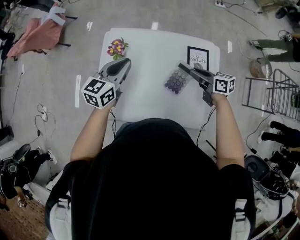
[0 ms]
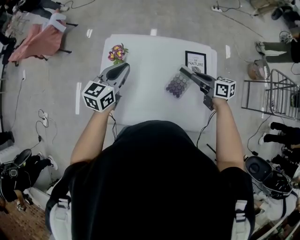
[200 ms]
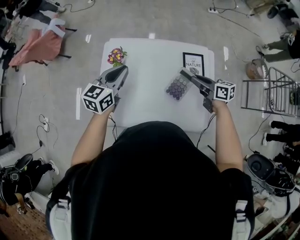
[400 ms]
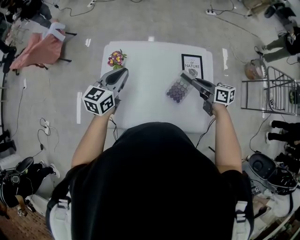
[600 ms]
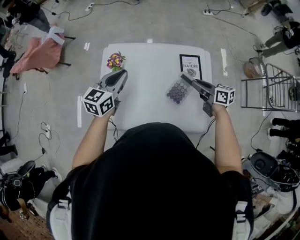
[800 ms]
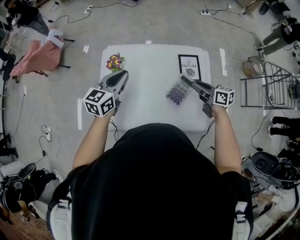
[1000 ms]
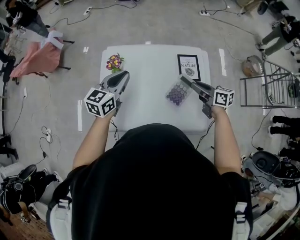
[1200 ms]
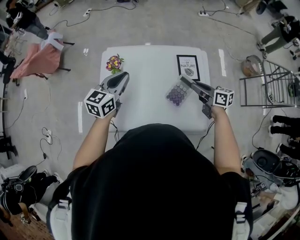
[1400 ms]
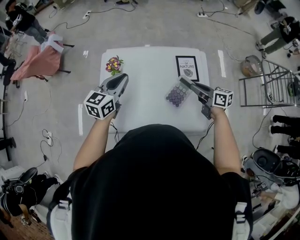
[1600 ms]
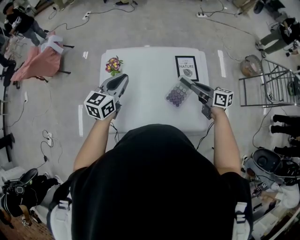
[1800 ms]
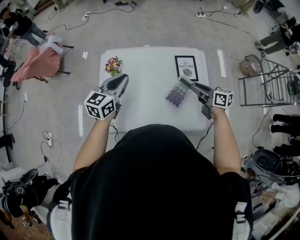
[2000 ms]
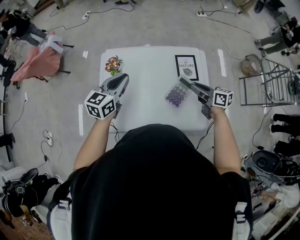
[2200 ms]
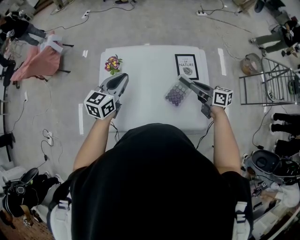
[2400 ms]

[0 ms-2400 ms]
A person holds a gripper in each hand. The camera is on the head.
0 ms to 1200 ms: The left gripper moves some 5 cm. Meanwhile the right gripper is displaced backward by about 10 cm.
1200 ms to 2400 ms: There are only small adjustments of the grippers.

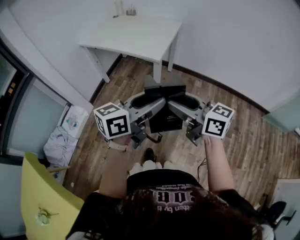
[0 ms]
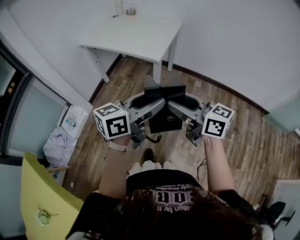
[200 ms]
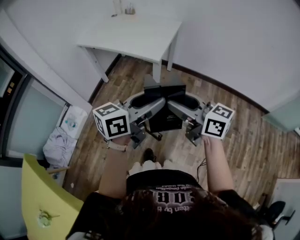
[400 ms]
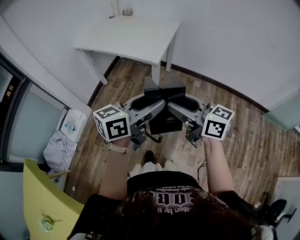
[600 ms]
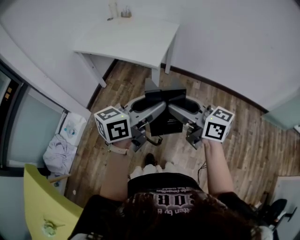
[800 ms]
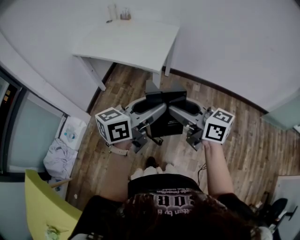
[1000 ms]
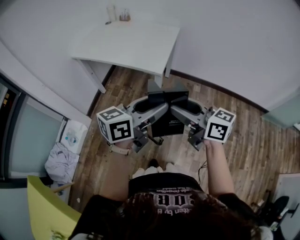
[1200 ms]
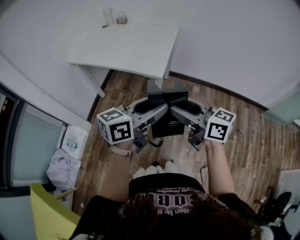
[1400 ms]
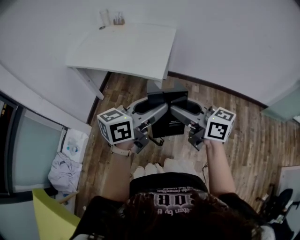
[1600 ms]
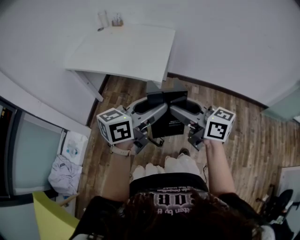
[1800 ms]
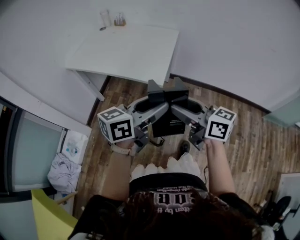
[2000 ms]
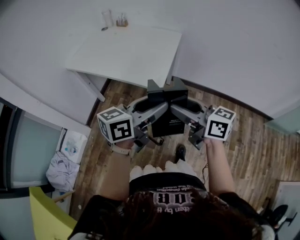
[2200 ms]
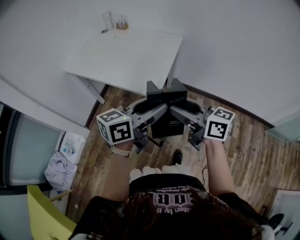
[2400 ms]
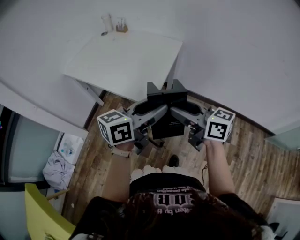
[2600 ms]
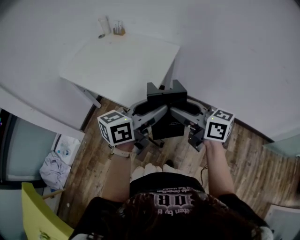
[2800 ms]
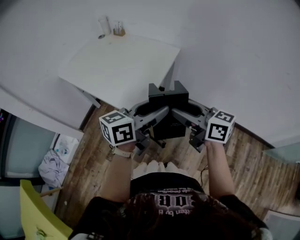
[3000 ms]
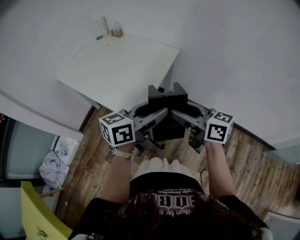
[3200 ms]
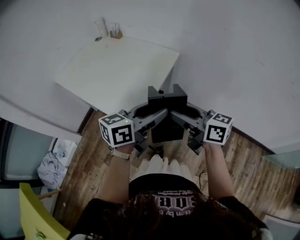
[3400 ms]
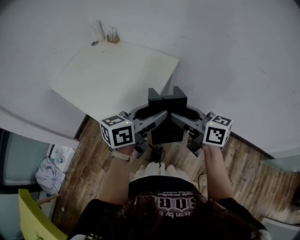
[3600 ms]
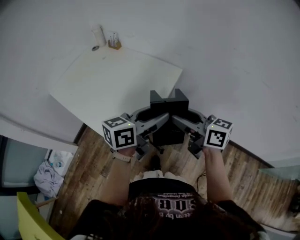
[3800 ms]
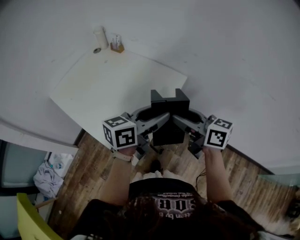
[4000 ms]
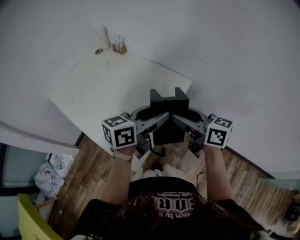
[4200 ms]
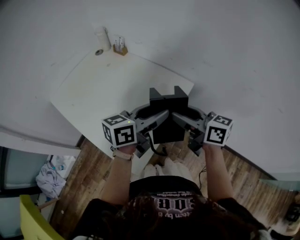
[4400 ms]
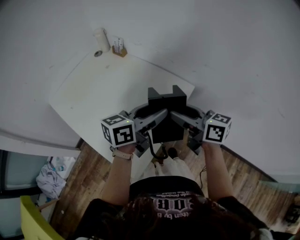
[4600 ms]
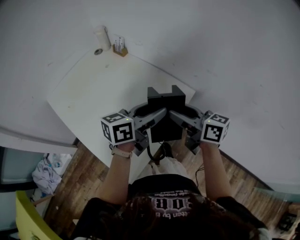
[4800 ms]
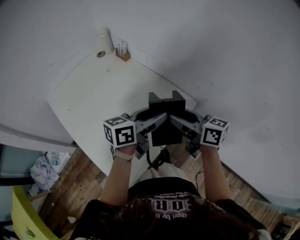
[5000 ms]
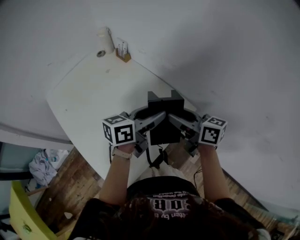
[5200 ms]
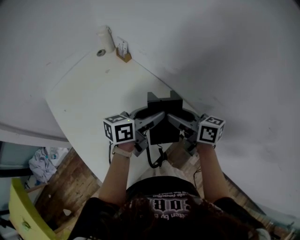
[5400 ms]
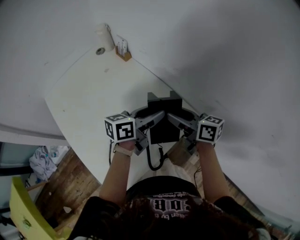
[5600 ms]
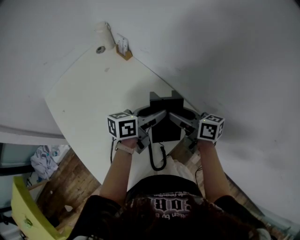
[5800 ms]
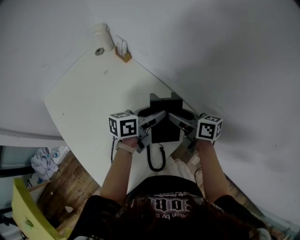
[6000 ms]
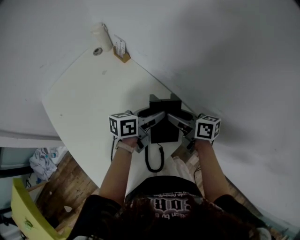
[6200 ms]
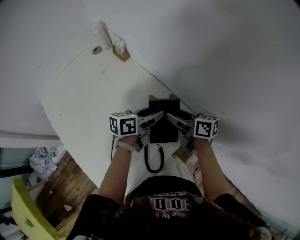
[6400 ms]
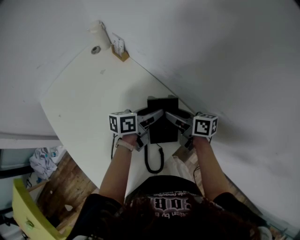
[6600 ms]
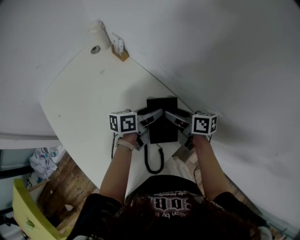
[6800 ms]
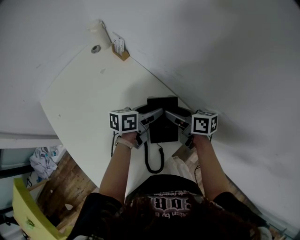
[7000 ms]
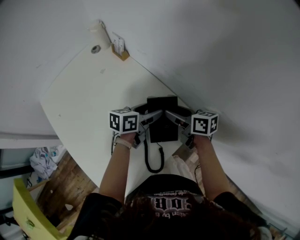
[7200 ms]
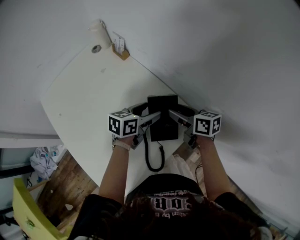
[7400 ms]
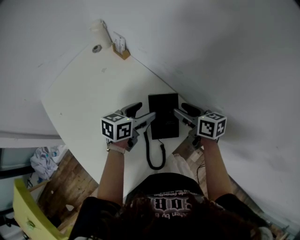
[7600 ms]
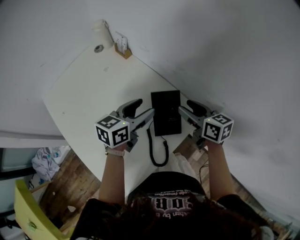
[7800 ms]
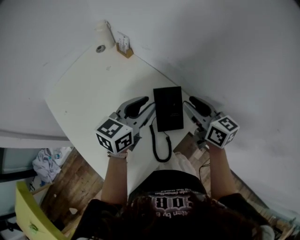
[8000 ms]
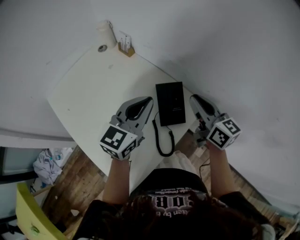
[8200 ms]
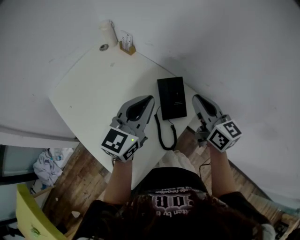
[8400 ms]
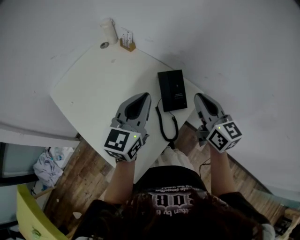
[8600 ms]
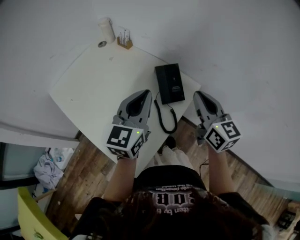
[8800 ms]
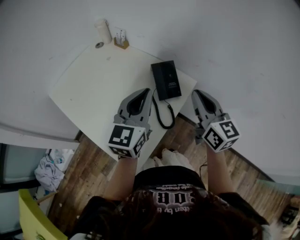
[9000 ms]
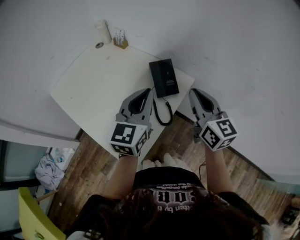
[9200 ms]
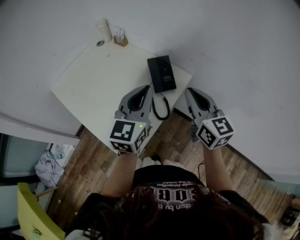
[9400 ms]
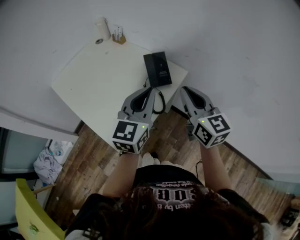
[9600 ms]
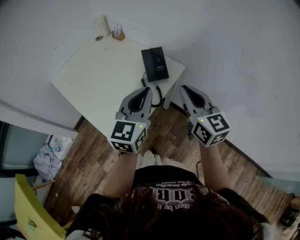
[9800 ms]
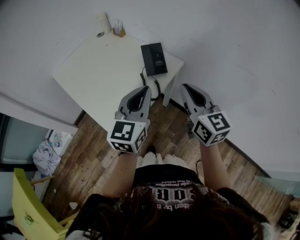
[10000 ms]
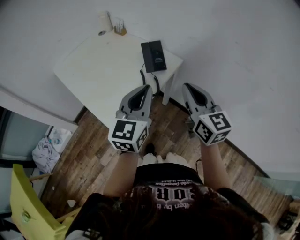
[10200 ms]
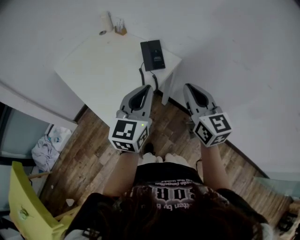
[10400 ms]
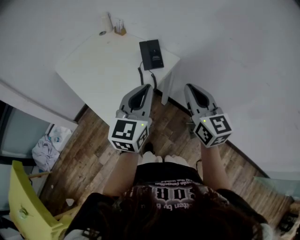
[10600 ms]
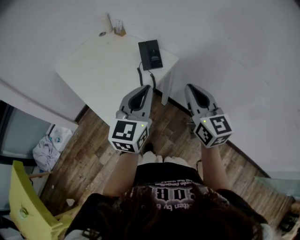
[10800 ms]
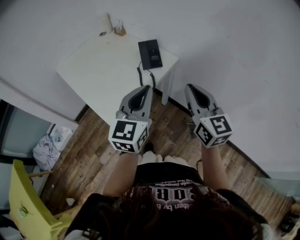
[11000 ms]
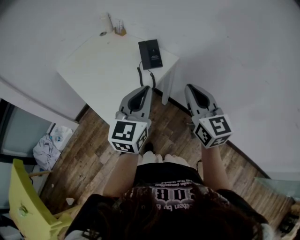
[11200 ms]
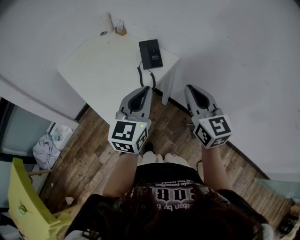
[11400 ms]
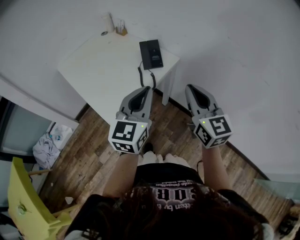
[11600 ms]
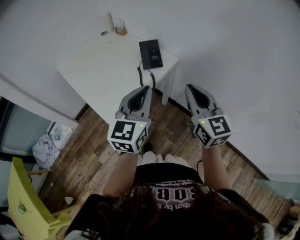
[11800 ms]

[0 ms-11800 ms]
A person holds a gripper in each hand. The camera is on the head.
0 ms to 1400 ms: The two grippers go some 10 cm forward.
1400 ms to 3000 ms: The grippers both shift forward and to the right by some 30 cm.
3000 ms to 4400 ms: Both grippers move forward, roughly 25 cm.
4400 ms to 6000 ms: The two grippers go roughly 30 cm forward and downward. The right gripper turns by roughly 20 degrees; the left gripper changes its angle by some 20 degrees.
6000 ms to 7400 ms: The left gripper heads downward, covering some 5 cm, and opens up; the right gripper shifts by some 5 cm.
7400 ms to 8800 ms: The grippers both shift upward and backward by about 25 cm. The left gripper turns by roughly 40 degrees, and closes. Meanwhile the right gripper swivels roughly 50 degrees, and closes its fingers.
8800 ms to 10400 ms: The left gripper moves backward and to the right, approximately 20 cm. Meanwhile the right gripper shifts roughly 20 cm backward.
10400 ms to 11800 ms: The grippers move only a little.

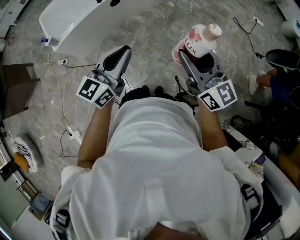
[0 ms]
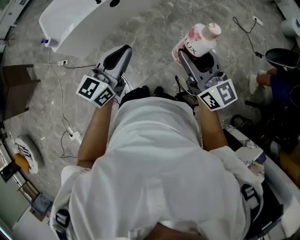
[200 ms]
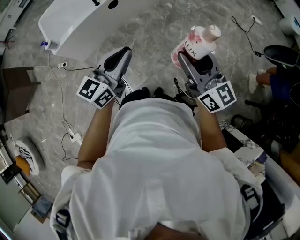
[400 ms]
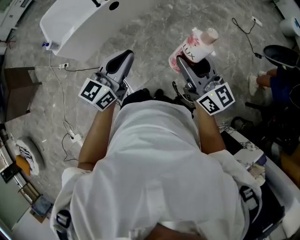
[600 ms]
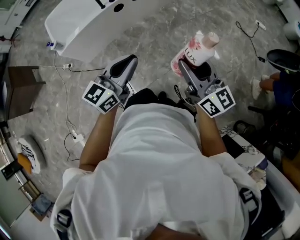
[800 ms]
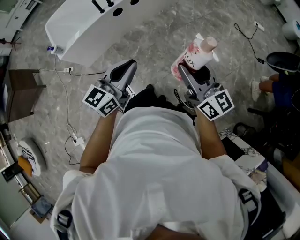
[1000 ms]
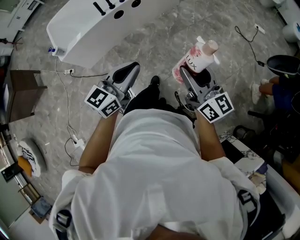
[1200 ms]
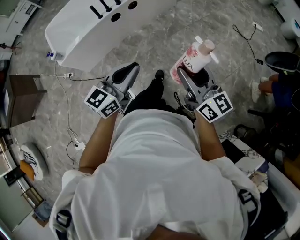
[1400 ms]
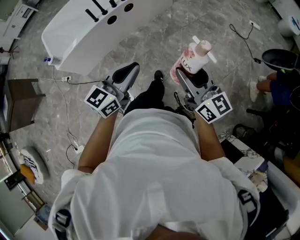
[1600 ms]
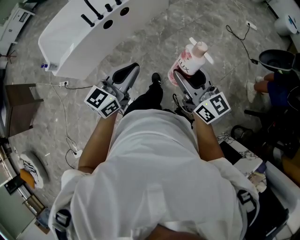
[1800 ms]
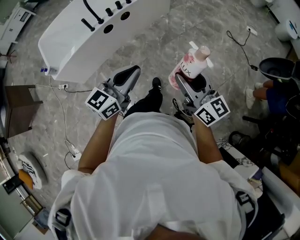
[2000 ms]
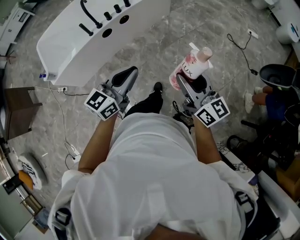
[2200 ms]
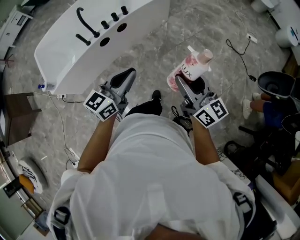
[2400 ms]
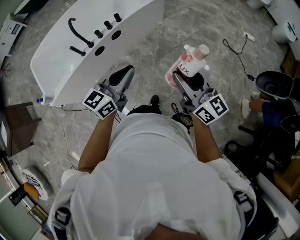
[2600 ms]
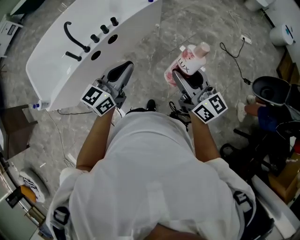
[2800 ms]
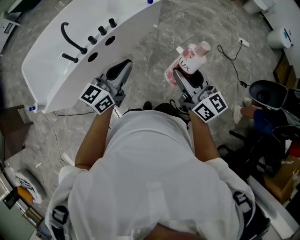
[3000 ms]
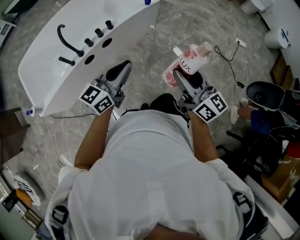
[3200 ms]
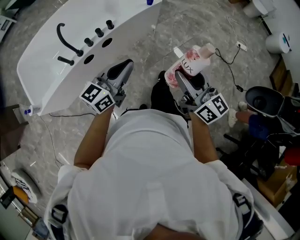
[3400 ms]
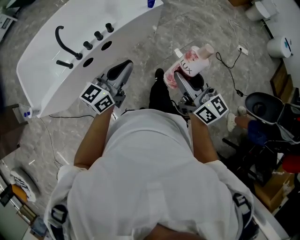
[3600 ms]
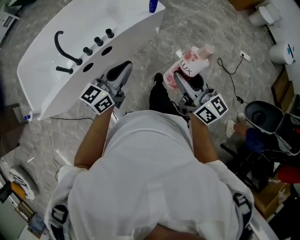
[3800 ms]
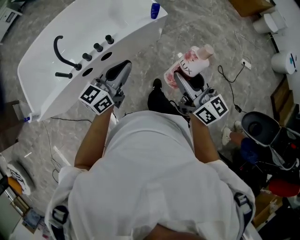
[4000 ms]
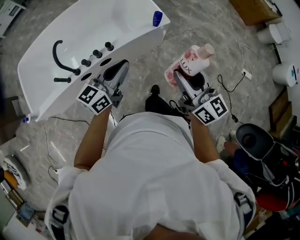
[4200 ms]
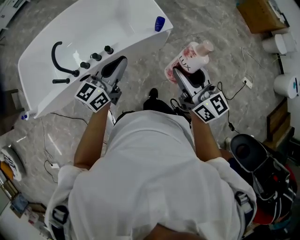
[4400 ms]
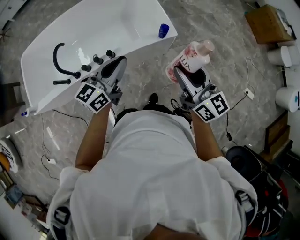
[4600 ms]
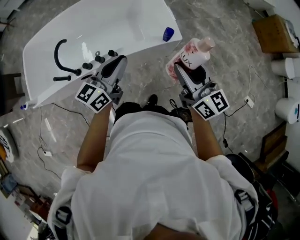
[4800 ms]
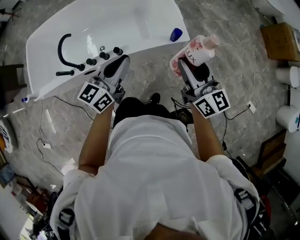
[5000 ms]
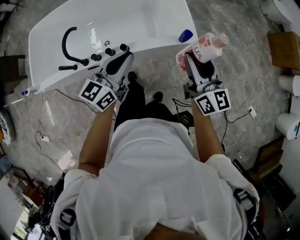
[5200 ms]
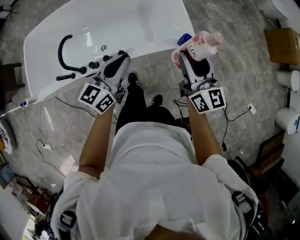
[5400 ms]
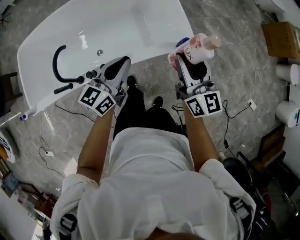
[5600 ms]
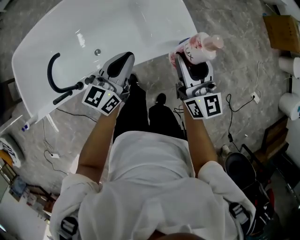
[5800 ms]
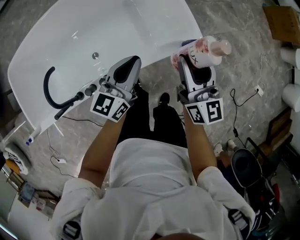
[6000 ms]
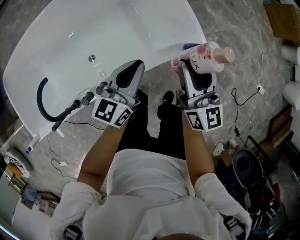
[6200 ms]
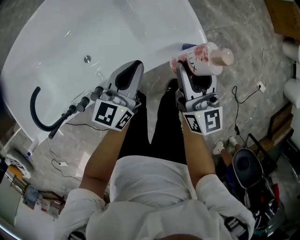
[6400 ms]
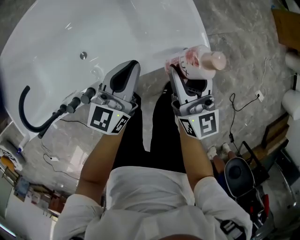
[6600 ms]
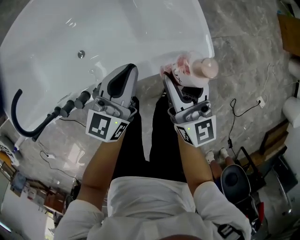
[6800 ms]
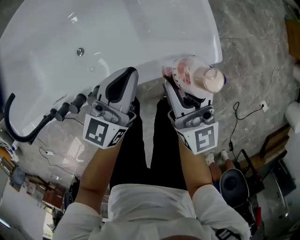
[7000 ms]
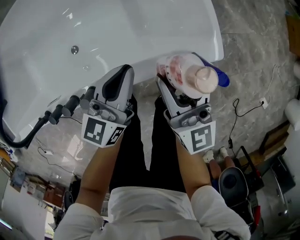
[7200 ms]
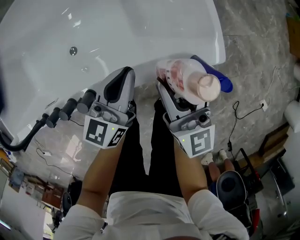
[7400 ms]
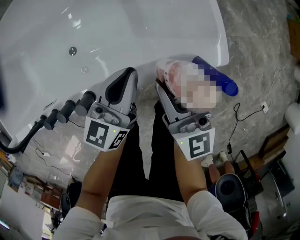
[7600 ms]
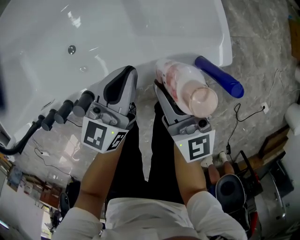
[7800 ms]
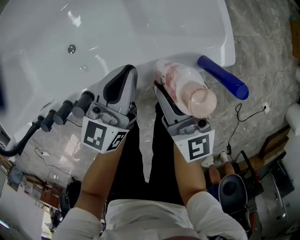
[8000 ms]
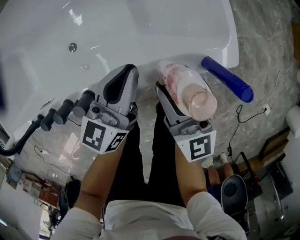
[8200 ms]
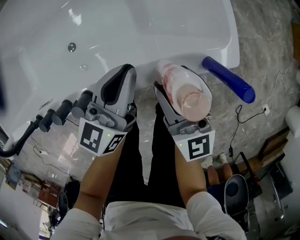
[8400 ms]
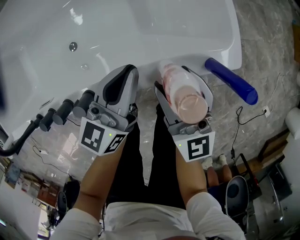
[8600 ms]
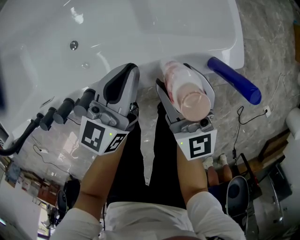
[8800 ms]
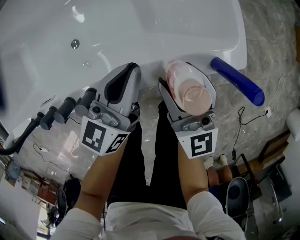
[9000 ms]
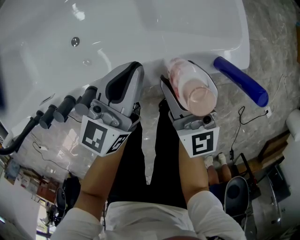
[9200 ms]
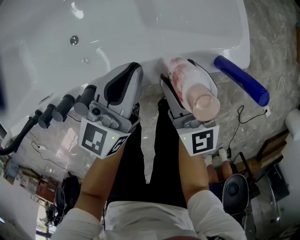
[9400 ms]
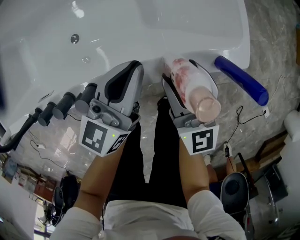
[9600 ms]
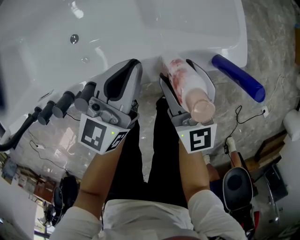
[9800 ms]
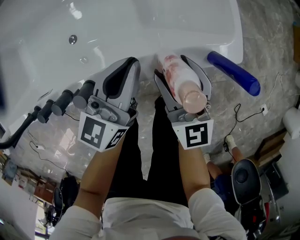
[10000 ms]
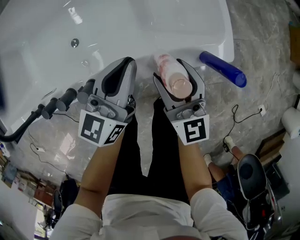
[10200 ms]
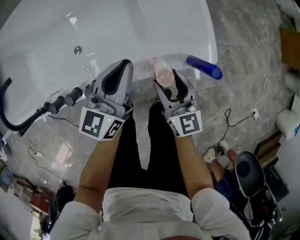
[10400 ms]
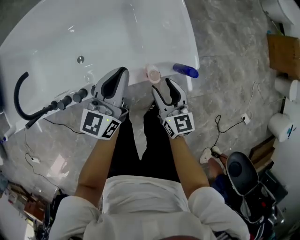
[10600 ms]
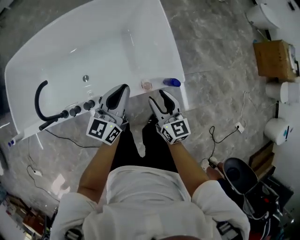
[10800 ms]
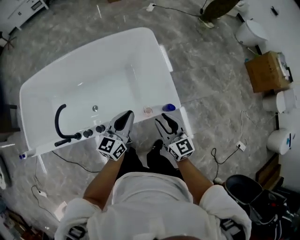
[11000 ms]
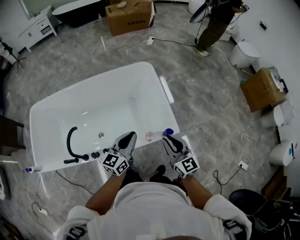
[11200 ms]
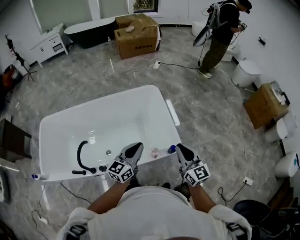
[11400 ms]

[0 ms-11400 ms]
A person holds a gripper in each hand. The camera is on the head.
0 ms to 1400 ms: The grippers move only a little.
1400 ms to 2800 ms: The grippers both shift forward by about 35 cm.
2800 ms to 4200 ms: The grippers both shift forward by some 30 cm.
4200 ms to 5600 ms: Both grippers move forward, about 25 cm.
5600 ms to 7200 ms: Both grippers move downward and forward, approximately 30 cm.
7200 ms to 8600 ms: The right gripper ends up about 5 cm from where it was.
8600 ms to 10000 ms: The grippers move only a little.
10000 ms to 11400 ms: Both grippers move upward, approximately 40 cm. The right gripper closes.
